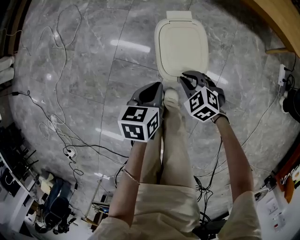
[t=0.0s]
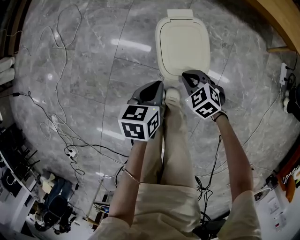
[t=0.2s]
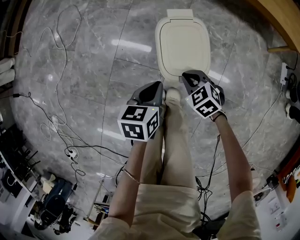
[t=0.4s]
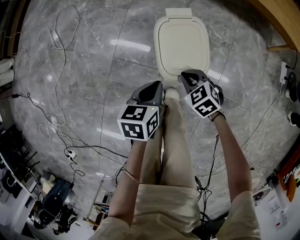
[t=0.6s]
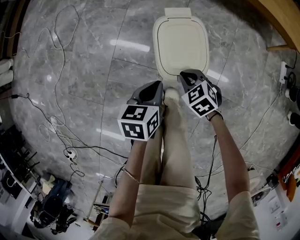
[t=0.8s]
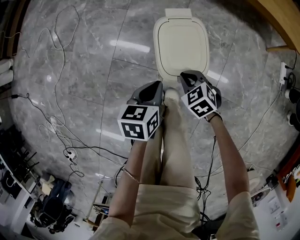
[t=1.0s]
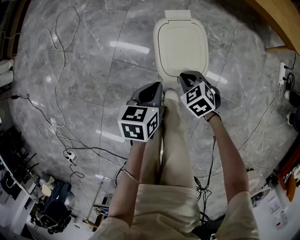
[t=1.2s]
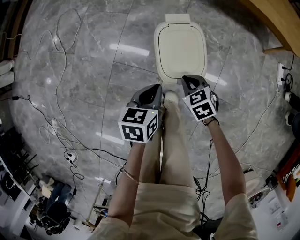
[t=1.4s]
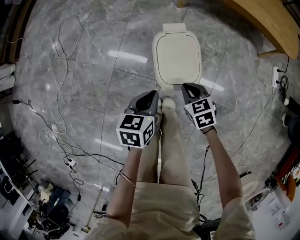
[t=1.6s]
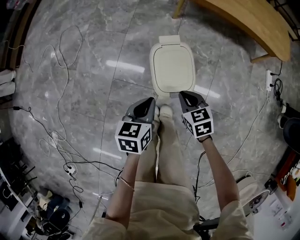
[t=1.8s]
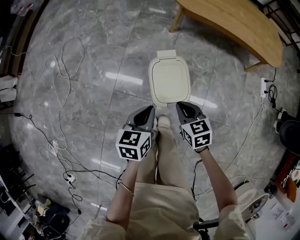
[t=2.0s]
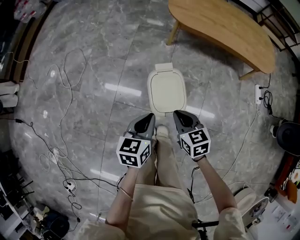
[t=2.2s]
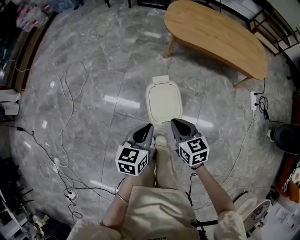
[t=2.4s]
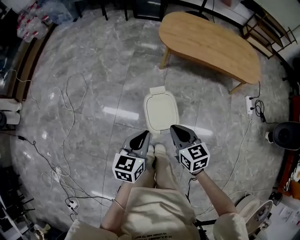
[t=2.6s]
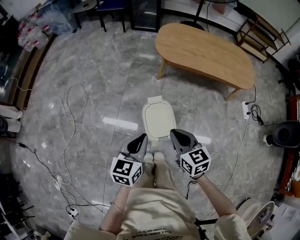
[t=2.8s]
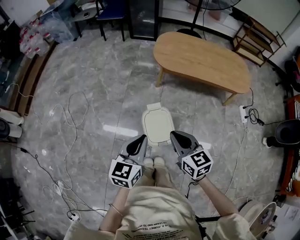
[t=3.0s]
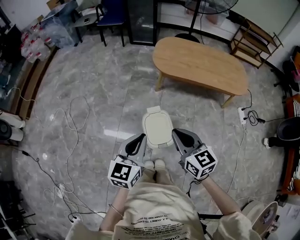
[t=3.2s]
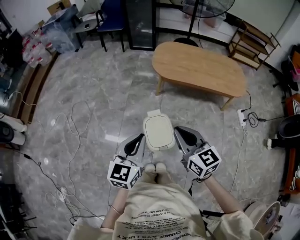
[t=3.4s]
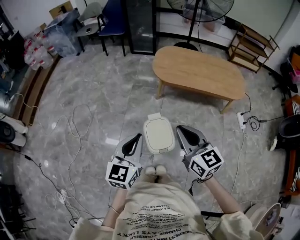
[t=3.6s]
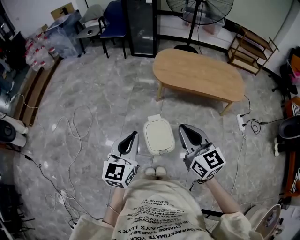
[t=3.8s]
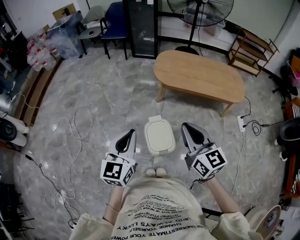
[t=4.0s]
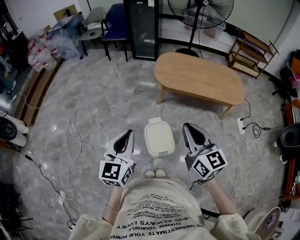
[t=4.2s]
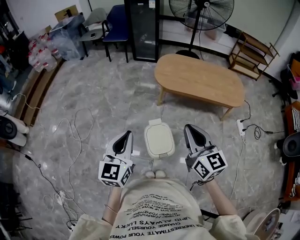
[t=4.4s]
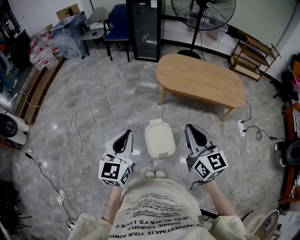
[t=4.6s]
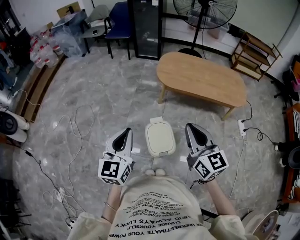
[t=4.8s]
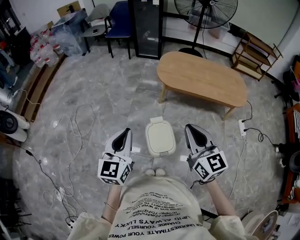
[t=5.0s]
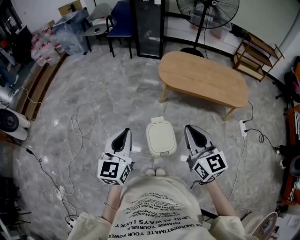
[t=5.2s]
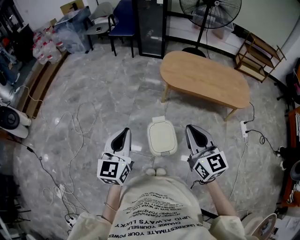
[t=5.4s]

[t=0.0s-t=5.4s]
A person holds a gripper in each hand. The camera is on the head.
t=0.0s to t=1.4s: The right gripper swivels about 20 degrees.
t=1.4s to t=2.8s: The two grippers go roughly 30 cm upward. The left gripper turns by about 30 degrees. The right gripper tips its fingers upward by approximately 30 degrees.
t=2.8s to t=4.0s: The grippers both shift upward by roughly 20 cm. The right gripper rotates about 20 degrees, while the left gripper changes its angle by approximately 20 degrees.
t=4.0s to t=5.4s: There are only small adjustments of the grippers.

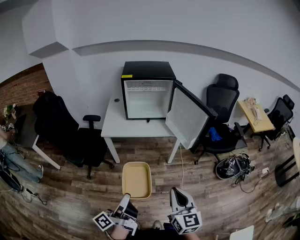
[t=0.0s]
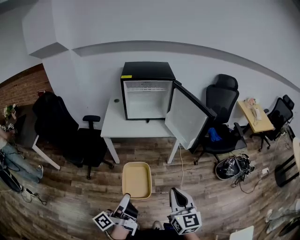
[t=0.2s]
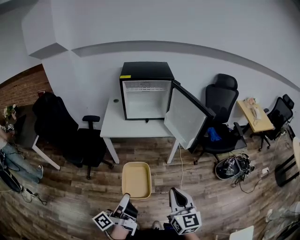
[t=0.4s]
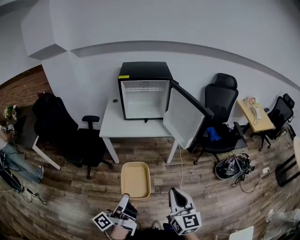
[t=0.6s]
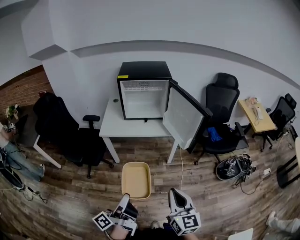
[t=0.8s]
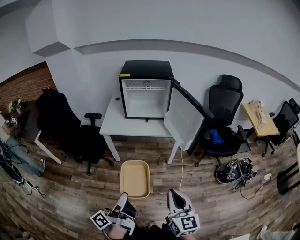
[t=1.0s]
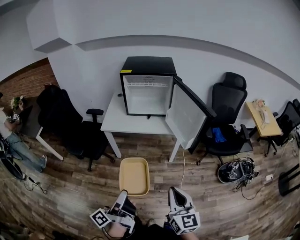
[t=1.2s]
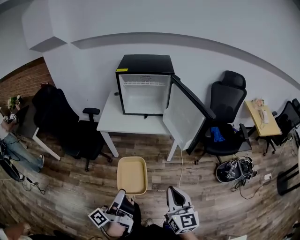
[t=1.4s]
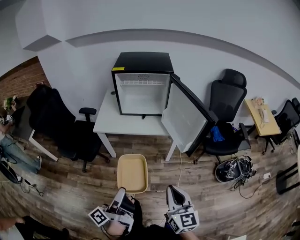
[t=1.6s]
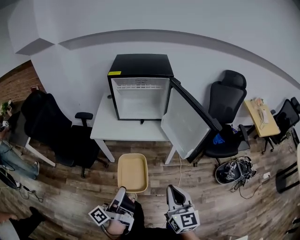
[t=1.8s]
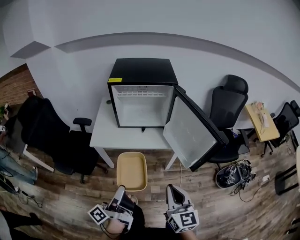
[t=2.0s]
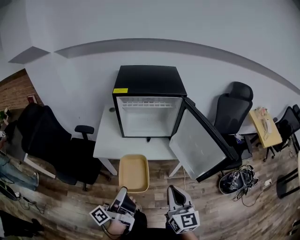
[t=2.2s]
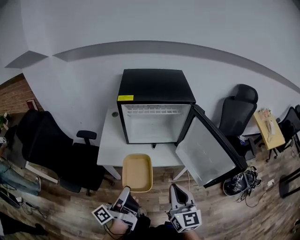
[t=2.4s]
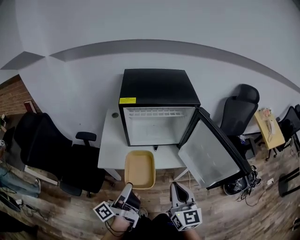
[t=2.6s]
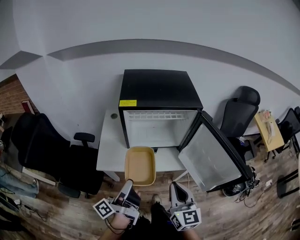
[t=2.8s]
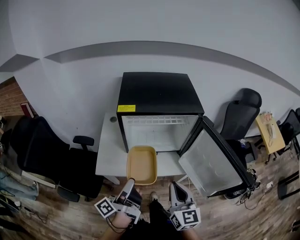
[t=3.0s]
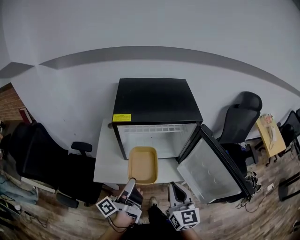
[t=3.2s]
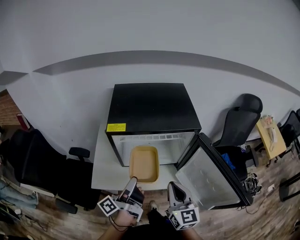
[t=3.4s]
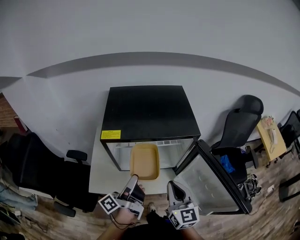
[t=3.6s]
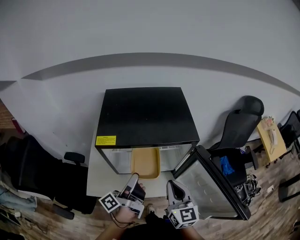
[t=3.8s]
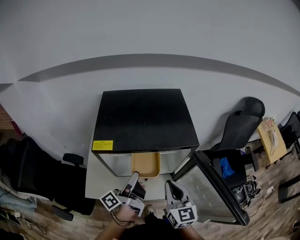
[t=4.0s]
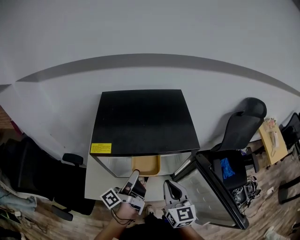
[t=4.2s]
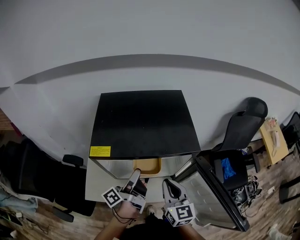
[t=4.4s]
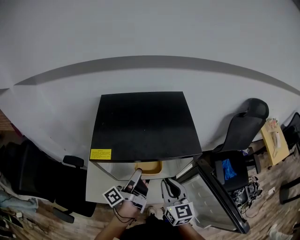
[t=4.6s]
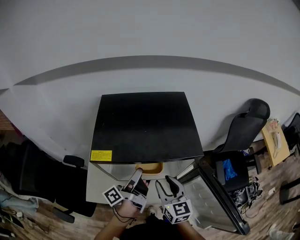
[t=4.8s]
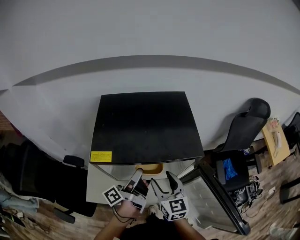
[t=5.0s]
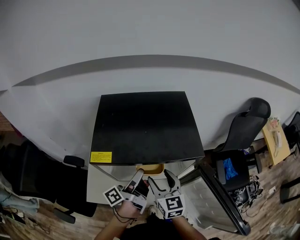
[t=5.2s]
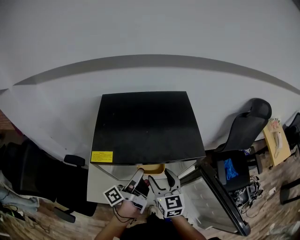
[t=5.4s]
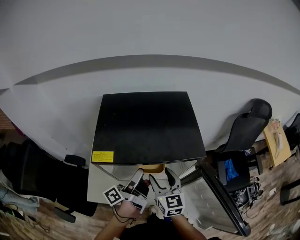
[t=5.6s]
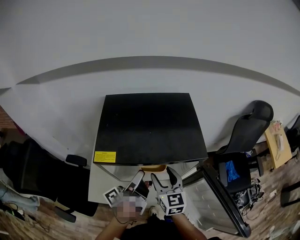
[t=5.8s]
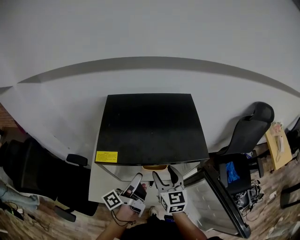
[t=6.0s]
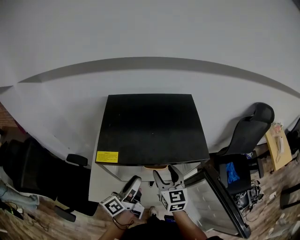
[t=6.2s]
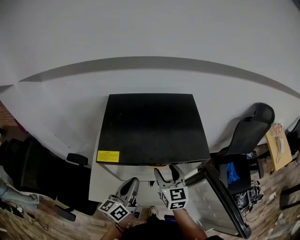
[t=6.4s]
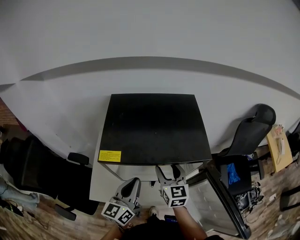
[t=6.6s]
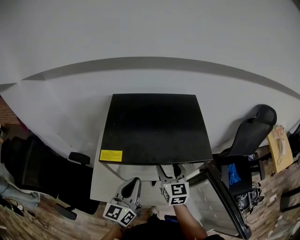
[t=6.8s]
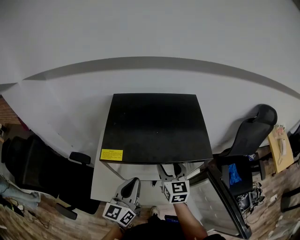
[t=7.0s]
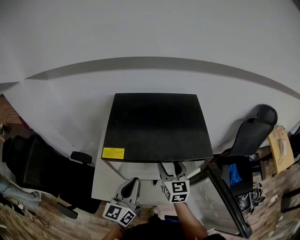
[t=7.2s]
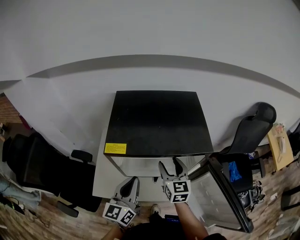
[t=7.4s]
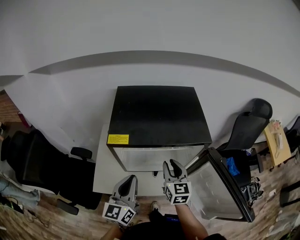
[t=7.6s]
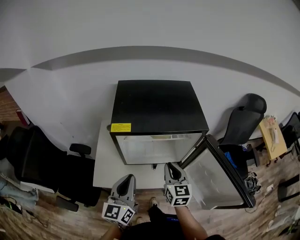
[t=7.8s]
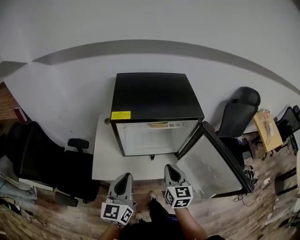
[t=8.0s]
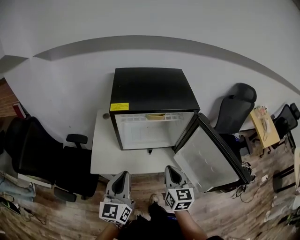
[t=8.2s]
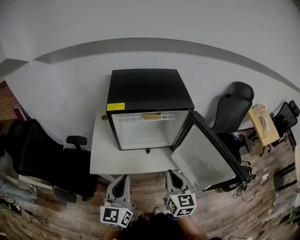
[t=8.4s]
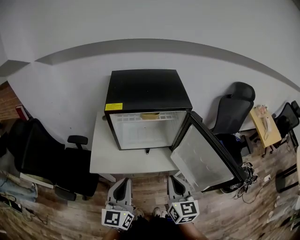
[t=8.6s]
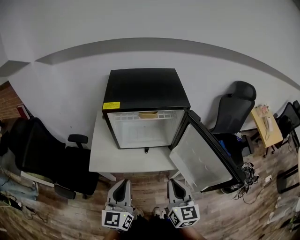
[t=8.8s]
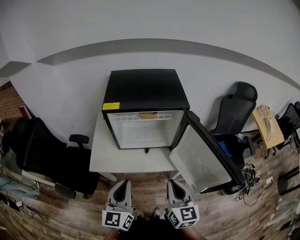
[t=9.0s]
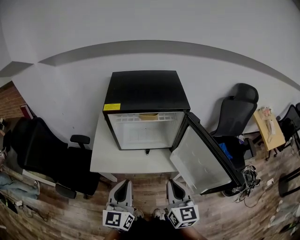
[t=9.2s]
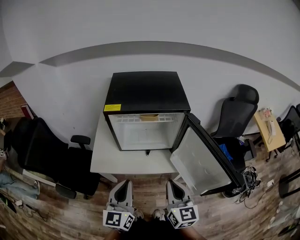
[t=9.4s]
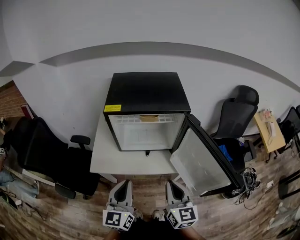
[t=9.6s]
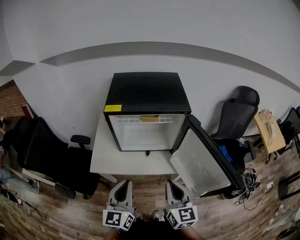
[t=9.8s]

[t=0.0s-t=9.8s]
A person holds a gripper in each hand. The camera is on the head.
t=0.0s to t=1.4s: The grippers both shift to the right by approximately 5 cm.
t=1.4s to t=2.8s: The pair of grippers is taken forward, about 40 cm.
t=2.8s to t=4.2s: Both grippers travel together forward, roughly 25 cm.
t=4.2s to t=5.6s: The right gripper heads forward and to the left, covering about 10 cm, and opens.
t=5.6s to t=7.0s: The right gripper travels forward by approximately 5 cm. Meanwhile the left gripper shifts roughly 5 cm backward, rolls clockwise, seen from behind, by some 70 degrees, and closes its fingers.
t=7.0s to t=8.4s: Both grippers move backward, roughly 25 cm. The right gripper closes up.
t=8.4s to t=9.8s: The left gripper shifts by some 5 cm; the right gripper moves roughly 5 cm.

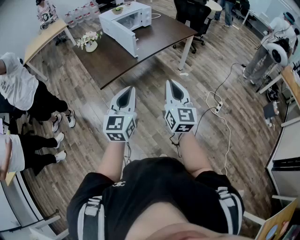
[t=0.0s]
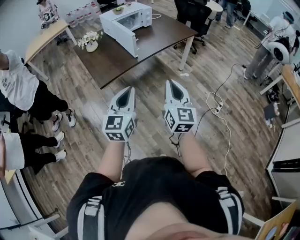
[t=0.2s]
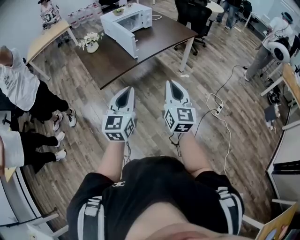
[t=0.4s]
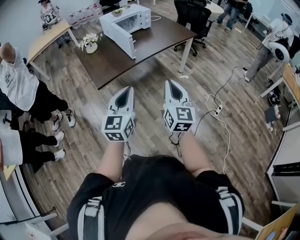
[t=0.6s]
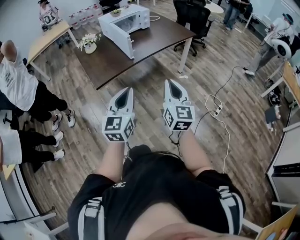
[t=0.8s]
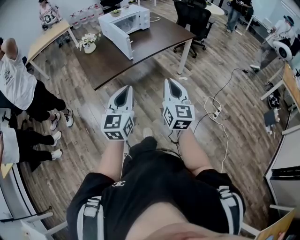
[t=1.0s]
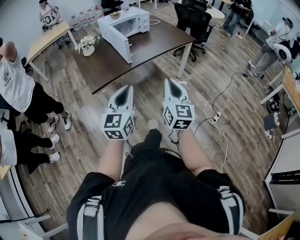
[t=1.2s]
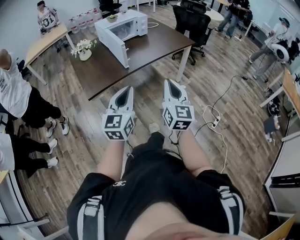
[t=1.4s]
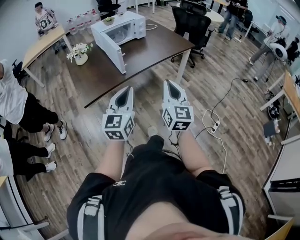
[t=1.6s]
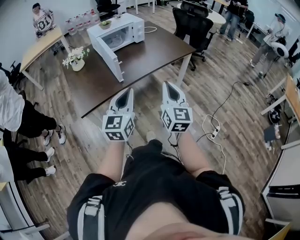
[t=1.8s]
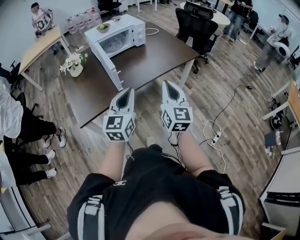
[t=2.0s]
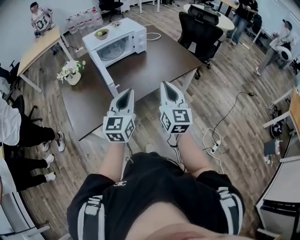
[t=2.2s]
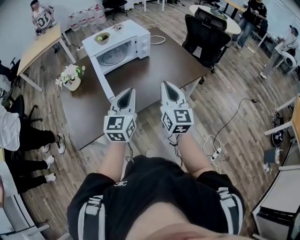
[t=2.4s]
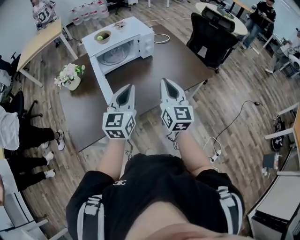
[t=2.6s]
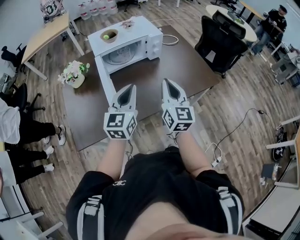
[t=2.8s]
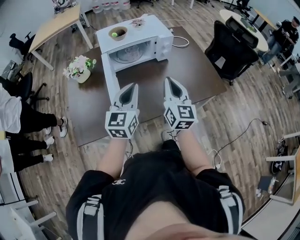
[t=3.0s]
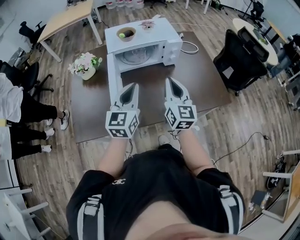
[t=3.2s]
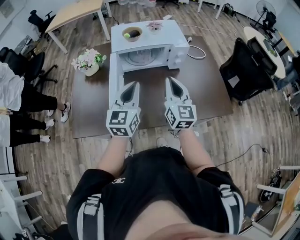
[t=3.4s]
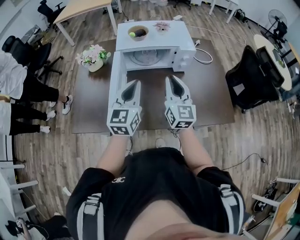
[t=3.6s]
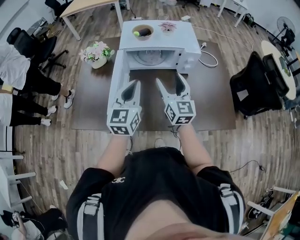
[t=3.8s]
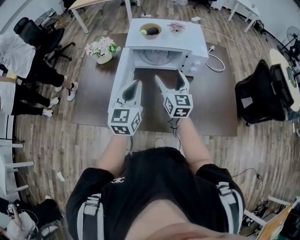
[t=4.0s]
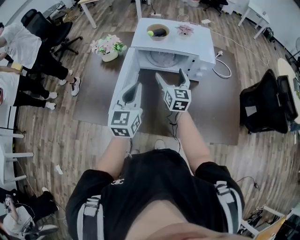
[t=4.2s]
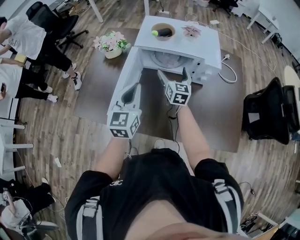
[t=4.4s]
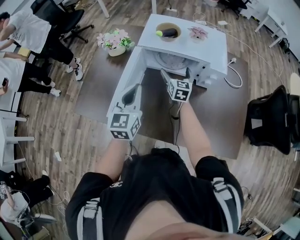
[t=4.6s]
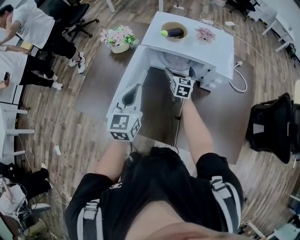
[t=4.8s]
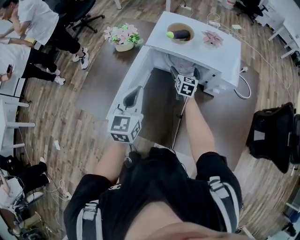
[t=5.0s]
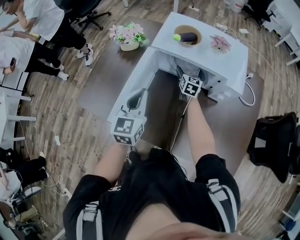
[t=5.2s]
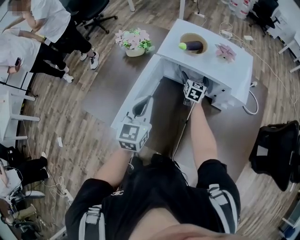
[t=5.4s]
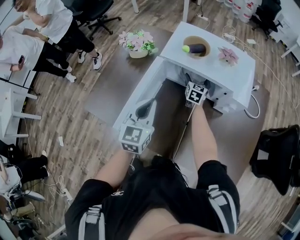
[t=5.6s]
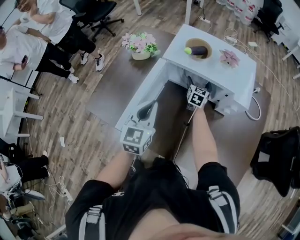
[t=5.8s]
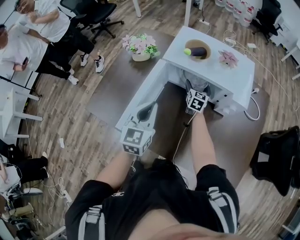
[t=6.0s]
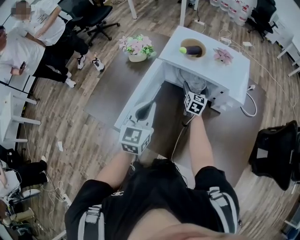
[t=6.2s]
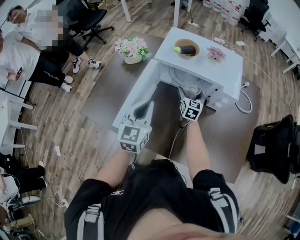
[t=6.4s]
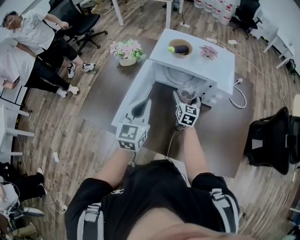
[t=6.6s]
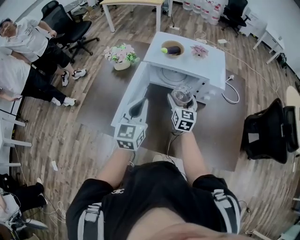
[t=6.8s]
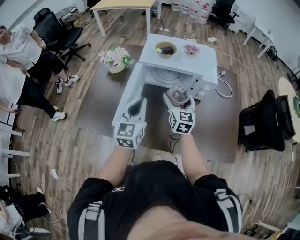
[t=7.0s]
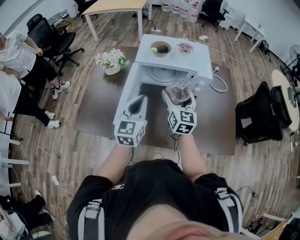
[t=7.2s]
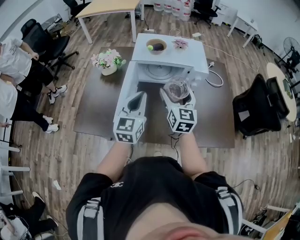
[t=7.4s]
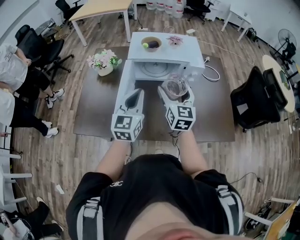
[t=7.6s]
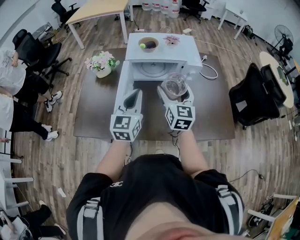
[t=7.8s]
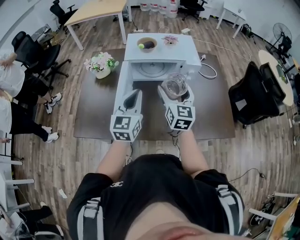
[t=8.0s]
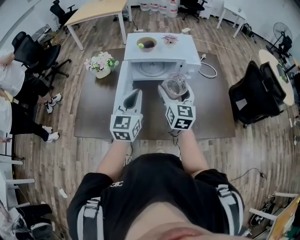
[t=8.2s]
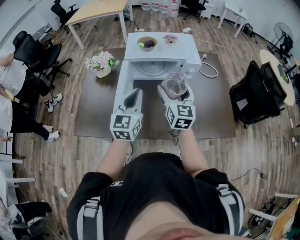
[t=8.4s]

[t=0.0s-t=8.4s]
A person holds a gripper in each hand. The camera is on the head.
t=0.0s to t=1.4s: The left gripper travels to the right and forward by some 15 cm, while the right gripper heads forward and to the right, covering some 15 cm.
t=1.4s to t=2.8s: The two grippers travel together, forward, some 60 cm.
t=2.8s to t=4.2s: The right gripper shifts by roughly 30 cm, rotates roughly 30 degrees, and opens its fingers. The left gripper ends up approximately 15 cm from where it was, and swivels roughly 30 degrees.
t=4.2s to t=5.6s: The left gripper is displaced forward and downward by approximately 10 cm. The right gripper heads forward and downward, covering approximately 30 cm.
t=5.6s to t=7.0s: The left gripper moves upward and backward, some 10 cm, while the right gripper travels backward and upward by roughly 30 cm.
t=7.0s to t=8.4s: The right gripper moves backward and upward, roughly 10 cm.
